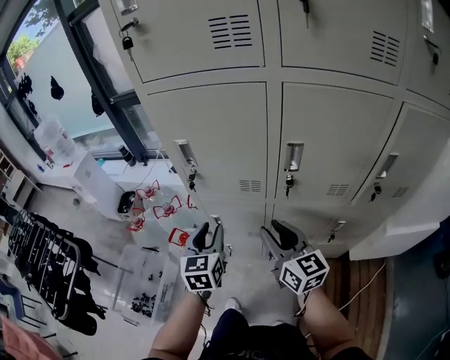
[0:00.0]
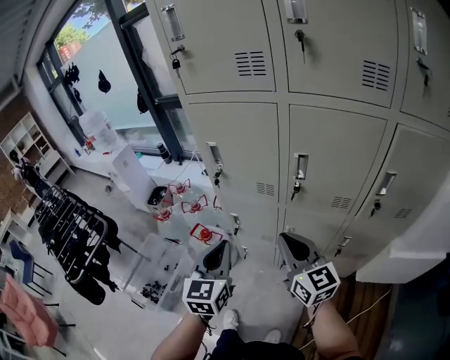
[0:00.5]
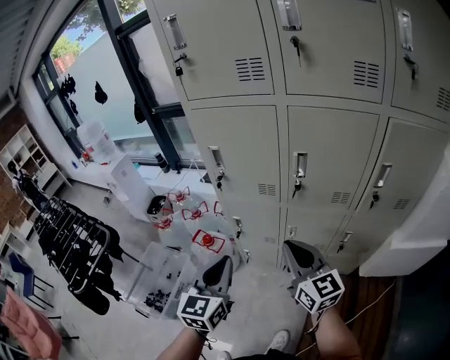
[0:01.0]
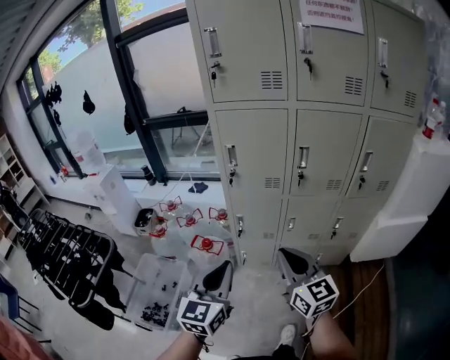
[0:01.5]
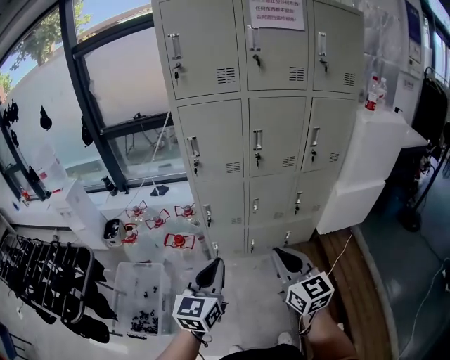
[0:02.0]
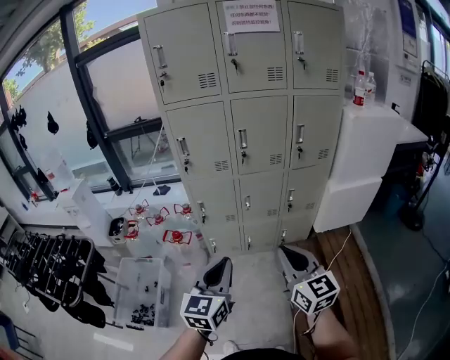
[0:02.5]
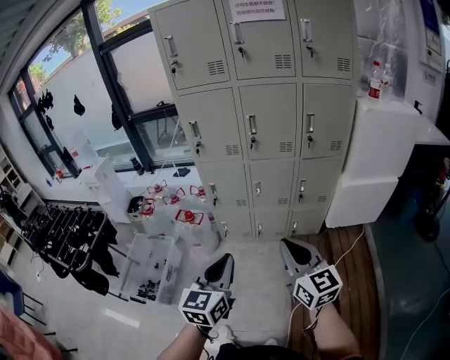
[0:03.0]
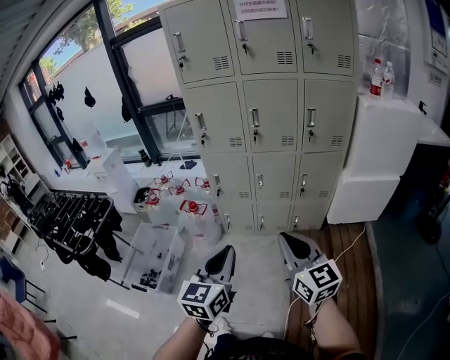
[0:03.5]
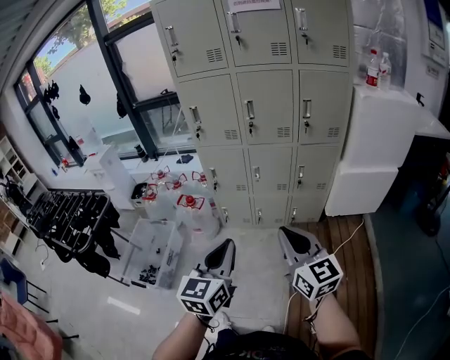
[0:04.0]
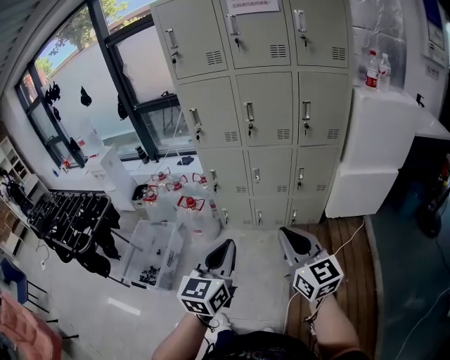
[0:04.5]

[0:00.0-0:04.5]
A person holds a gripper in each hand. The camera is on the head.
0:00.0 to 0:02.0: The left gripper moves some 40 cm, changes its angle by roughly 30 degrees, and closes up. The right gripper moves approximately 40 cm, and closes up.
0:02.0 to 0:04.5: Both grippers travel together to the right and backward, approximately 25 cm.

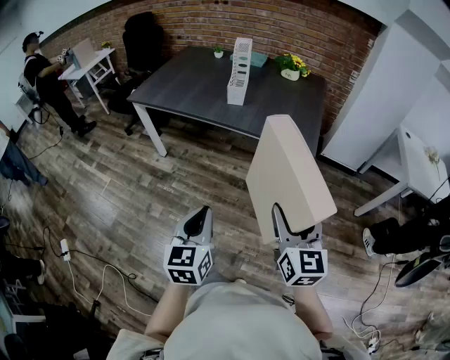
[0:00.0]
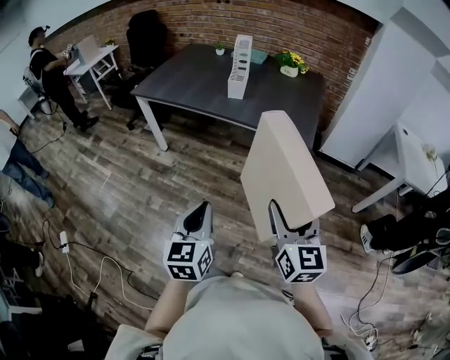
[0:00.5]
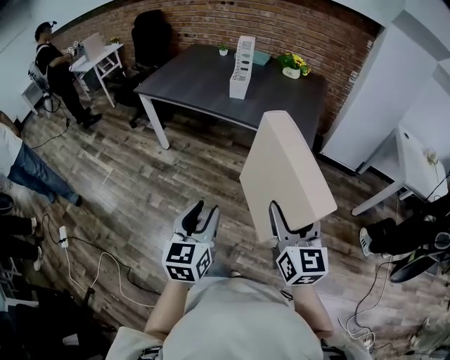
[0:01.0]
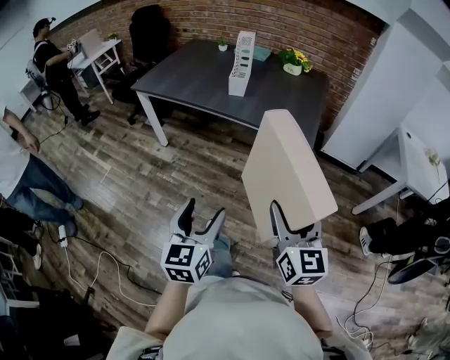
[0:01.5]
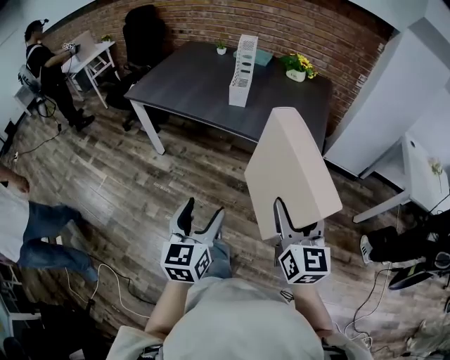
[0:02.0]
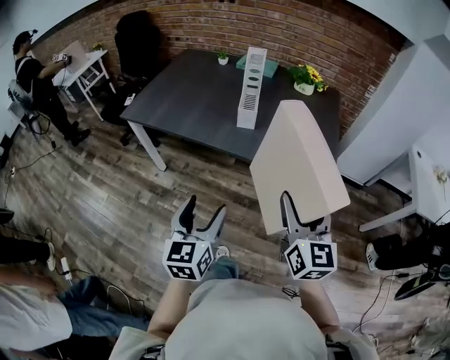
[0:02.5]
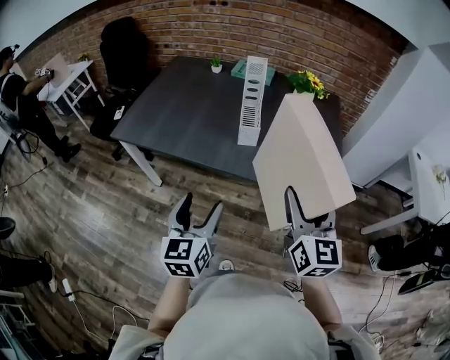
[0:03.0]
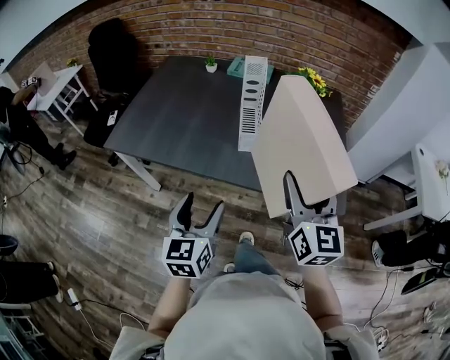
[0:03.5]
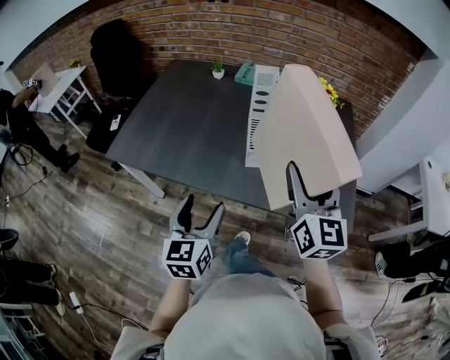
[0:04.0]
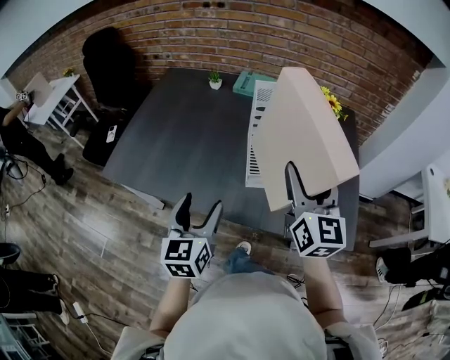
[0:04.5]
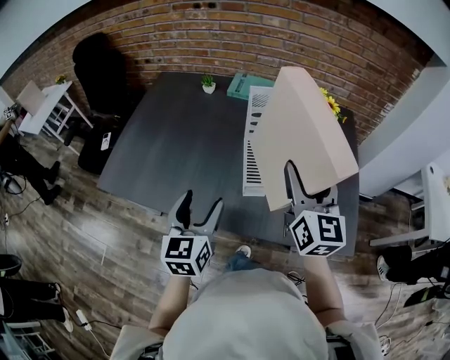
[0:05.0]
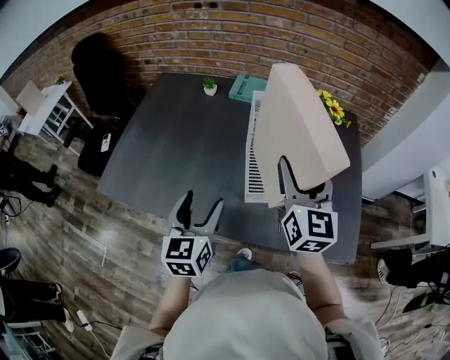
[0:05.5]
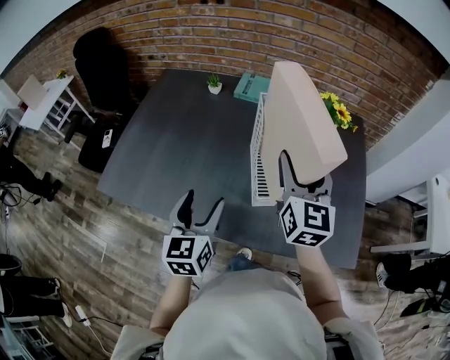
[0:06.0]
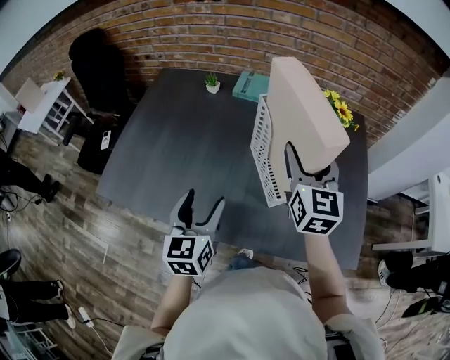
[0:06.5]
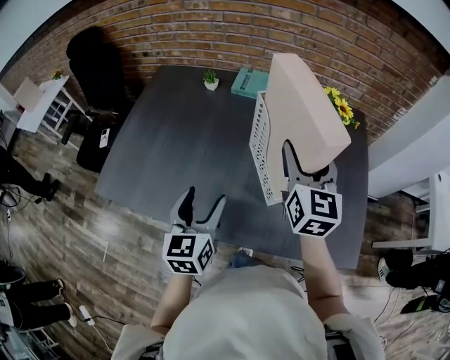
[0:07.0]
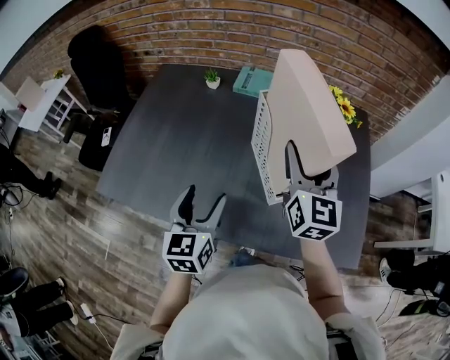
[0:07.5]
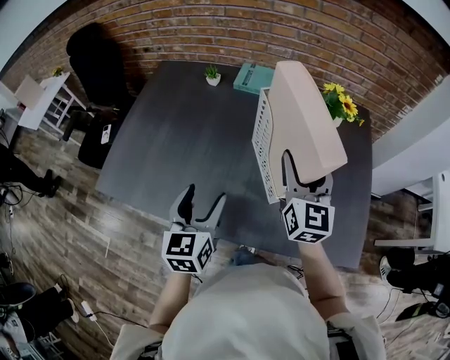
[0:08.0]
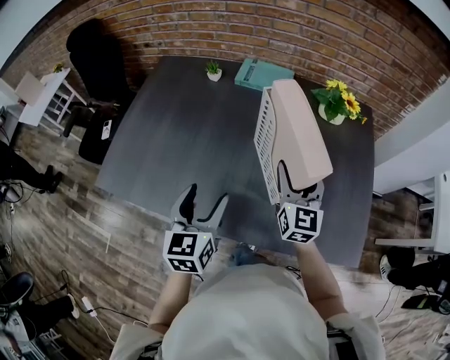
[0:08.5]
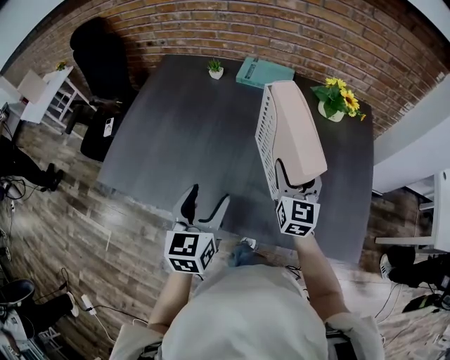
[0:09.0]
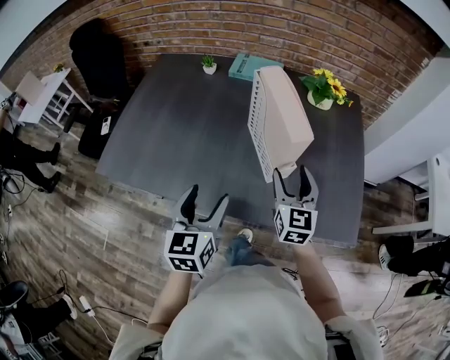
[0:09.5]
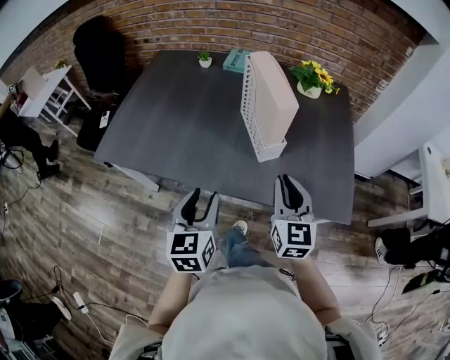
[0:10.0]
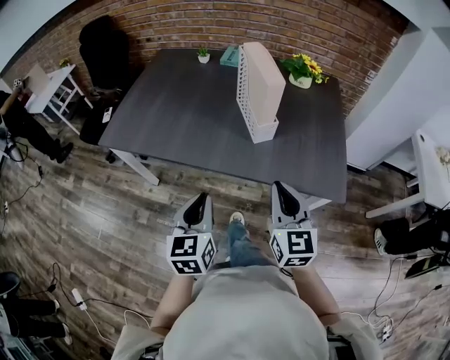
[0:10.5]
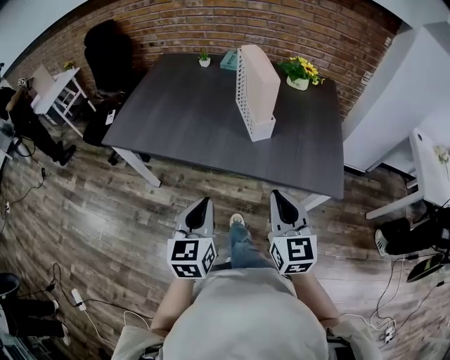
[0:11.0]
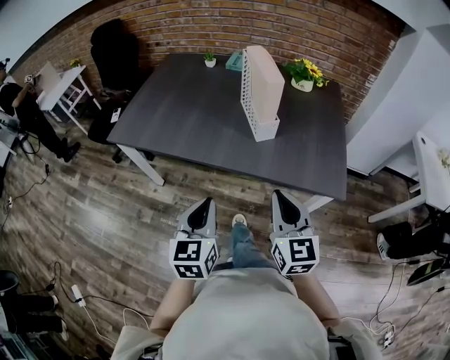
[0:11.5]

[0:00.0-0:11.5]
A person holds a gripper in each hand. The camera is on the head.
0:00.0 to 0:02.0: The grippers both shift forward by approximately 5 cm. The left gripper opens up.
0:02.0 to 0:04.0: The pair of grippers is taken forward, about 40 cm.
0:04.0 to 0:06.0: The grippers both shift forward by about 20 cm.
0:06.0 to 0:07.5: There are only small adjustments of the grippers.
0:07.5 to 0:09.5: The left gripper heads backward, covering some 10 cm. Meanwhile the right gripper is displaced downward and backward by about 15 cm.
0:09.5 to 0:11.5: The grippers both shift backward by roughly 25 cm. The left gripper closes its fingers. The right gripper closes its fingers.

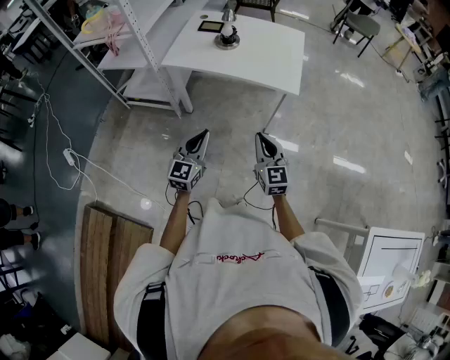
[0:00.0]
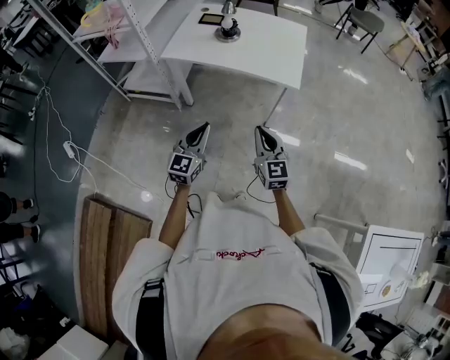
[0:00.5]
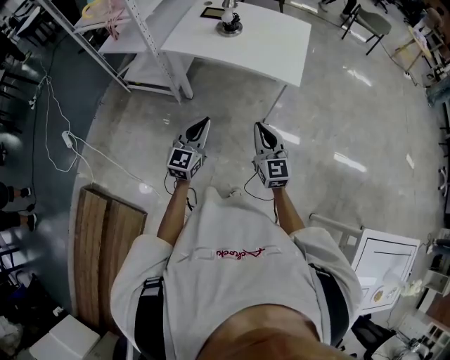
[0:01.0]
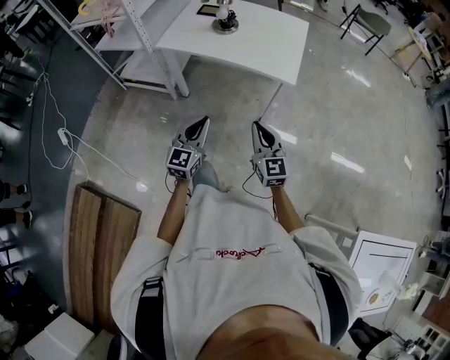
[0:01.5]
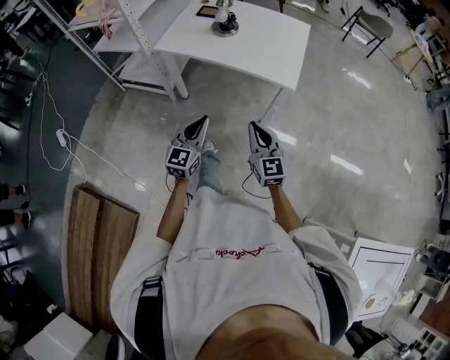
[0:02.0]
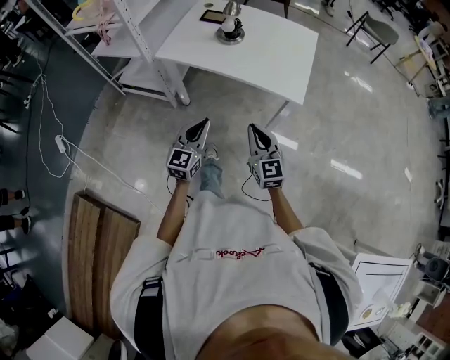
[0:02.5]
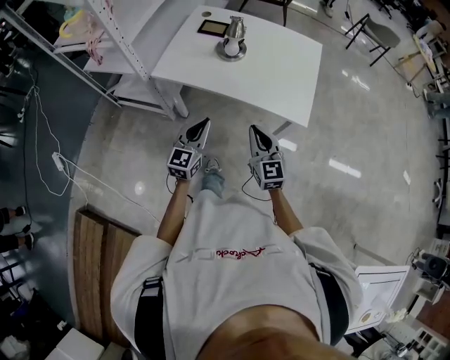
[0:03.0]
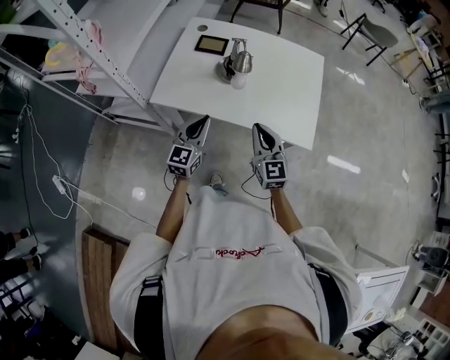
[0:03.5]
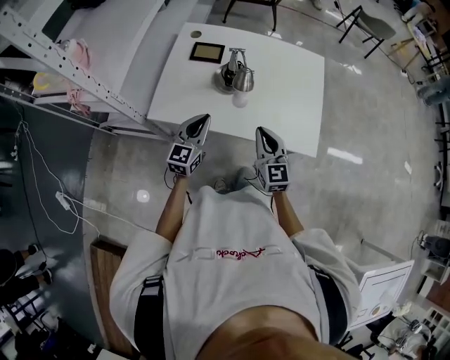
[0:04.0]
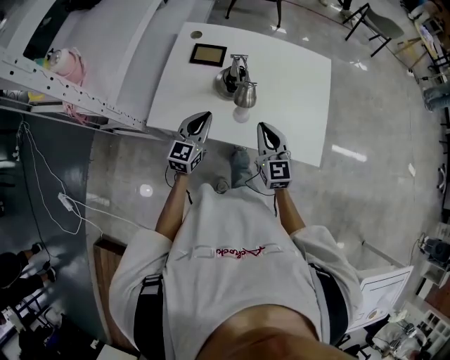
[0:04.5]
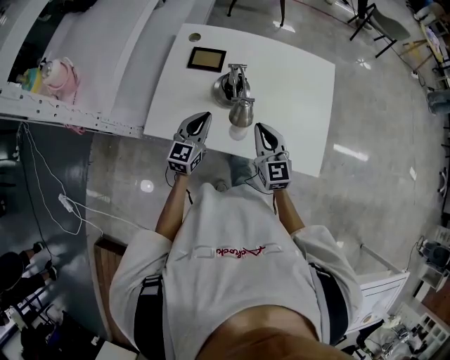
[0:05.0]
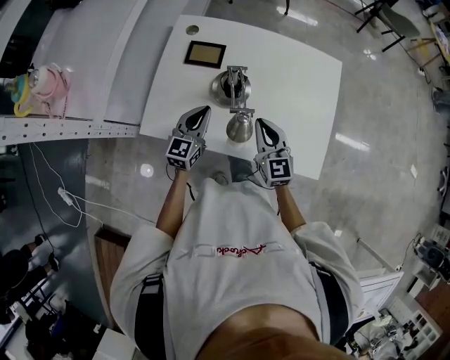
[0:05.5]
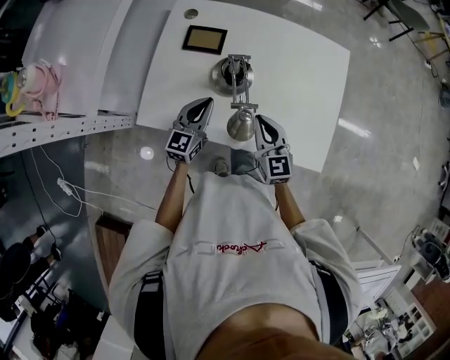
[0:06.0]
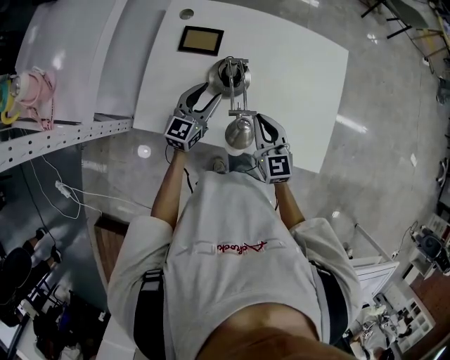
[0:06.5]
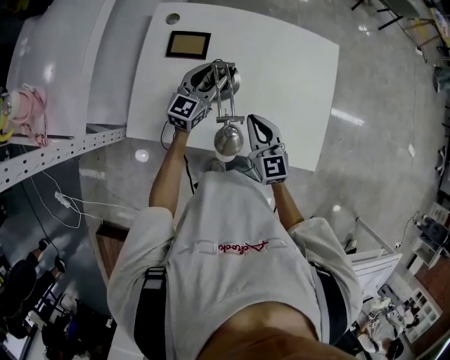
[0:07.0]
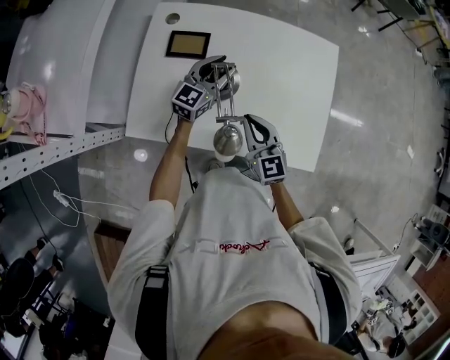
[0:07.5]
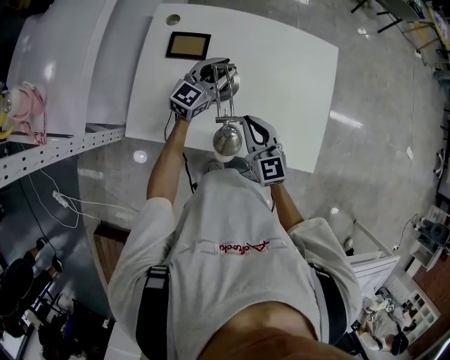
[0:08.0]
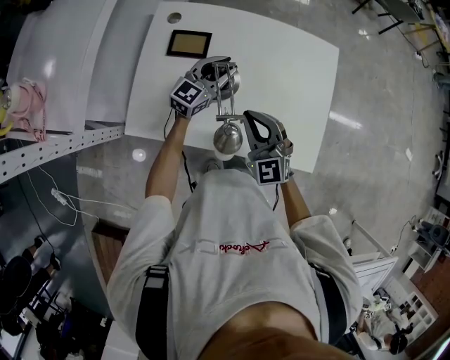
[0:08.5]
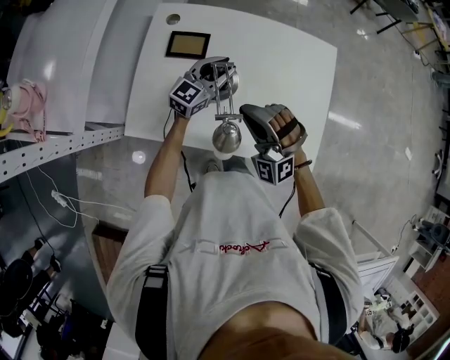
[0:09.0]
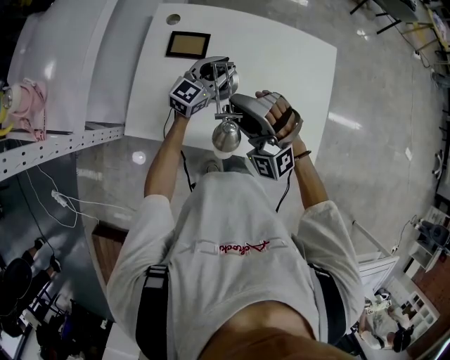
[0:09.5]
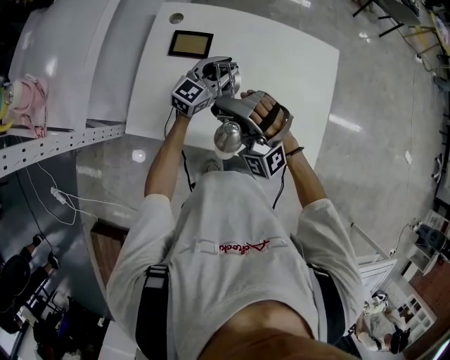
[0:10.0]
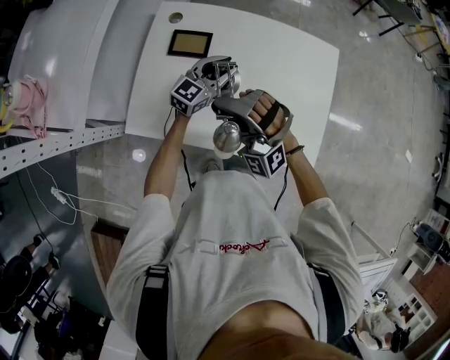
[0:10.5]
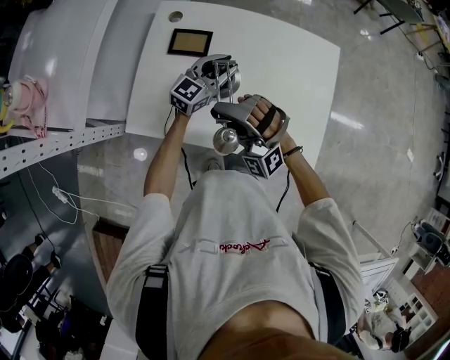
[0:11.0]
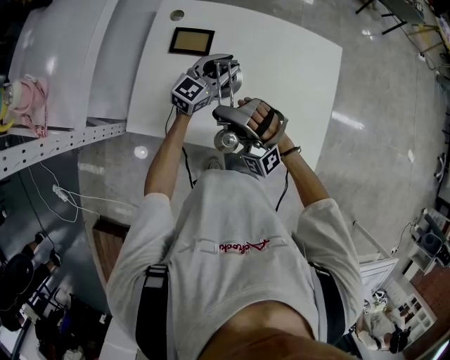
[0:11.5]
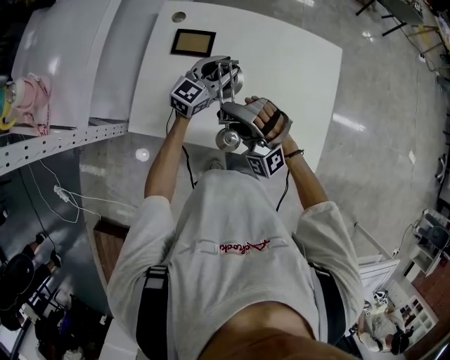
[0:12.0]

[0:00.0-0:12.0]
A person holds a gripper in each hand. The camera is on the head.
0:00.0 to 0:02.0: The left gripper moves about 5 cm.
0:02.0 to 0:04.0: Both grippers travel together forward, some 35 cm.
0:04.0 to 0:06.0: The grippers both shift forward and downward by roughly 15 cm.
0:06.0 to 0:08.0: The left gripper shifts about 15 cm forward and to the right, swivels some 20 degrees, and opens its fingers.
0:08.0 to 0:10.0: The right gripper travels upward and to the left by approximately 15 cm, rotates around the line of its fingers by some 70 degrees, counterclockwise from behind, and opens up.
0:10.0 to 0:12.0: The right gripper closes and opens again.
